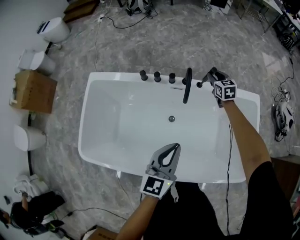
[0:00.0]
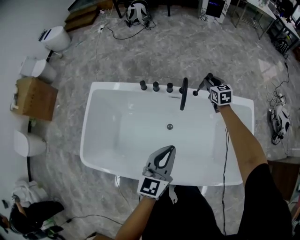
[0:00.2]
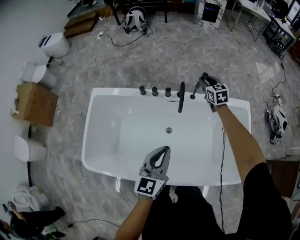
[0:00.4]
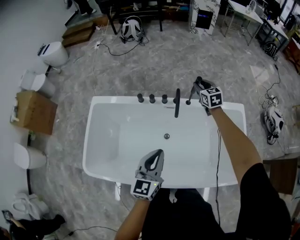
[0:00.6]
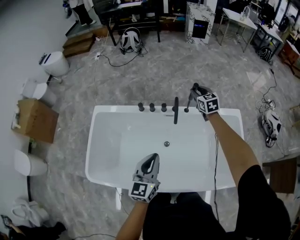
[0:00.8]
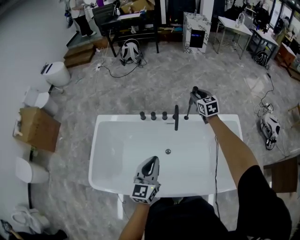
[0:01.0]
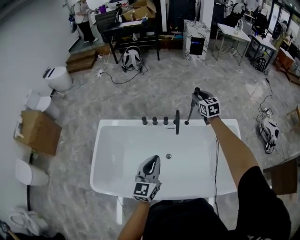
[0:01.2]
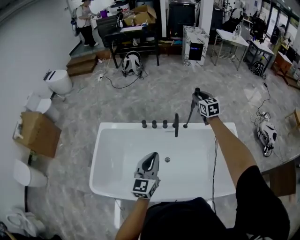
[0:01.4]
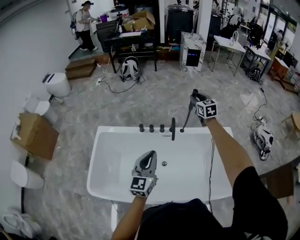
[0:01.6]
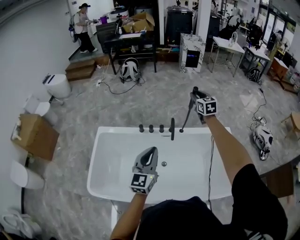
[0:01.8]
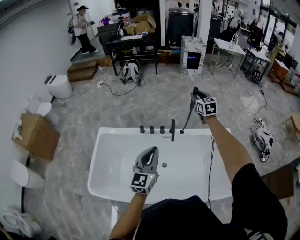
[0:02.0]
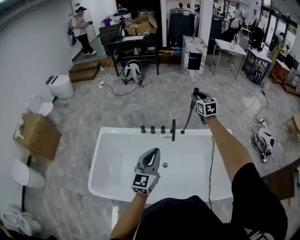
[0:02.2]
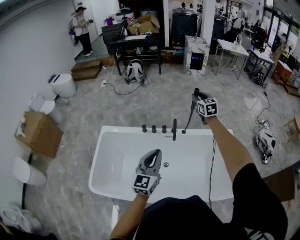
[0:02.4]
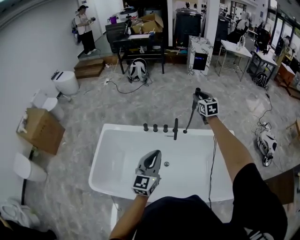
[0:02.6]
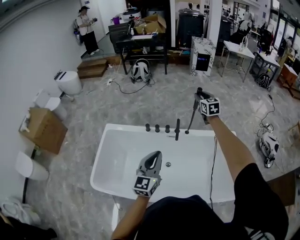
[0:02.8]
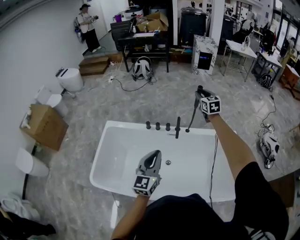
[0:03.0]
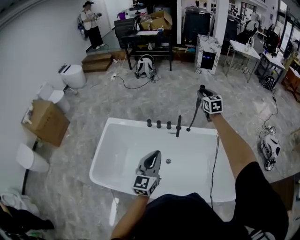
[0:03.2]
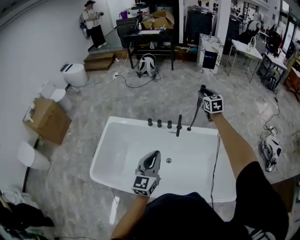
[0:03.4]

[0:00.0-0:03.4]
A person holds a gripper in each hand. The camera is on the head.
0:00.0 to 0:01.6: The right gripper travels upward by roughly 35 cm; the left gripper moves upward and to the left, about 20 cm.
0:01.6 to 0:03.4: The left gripper travels backward by some 5 cm.

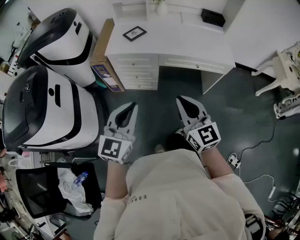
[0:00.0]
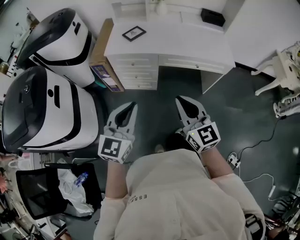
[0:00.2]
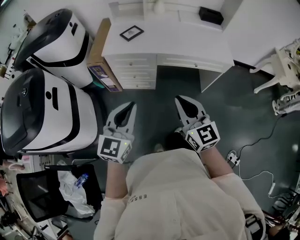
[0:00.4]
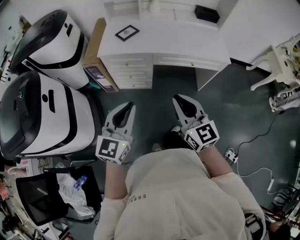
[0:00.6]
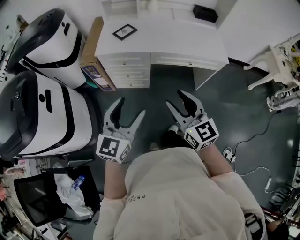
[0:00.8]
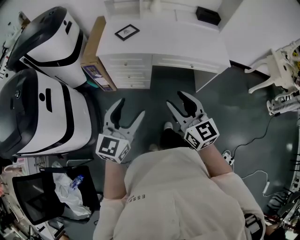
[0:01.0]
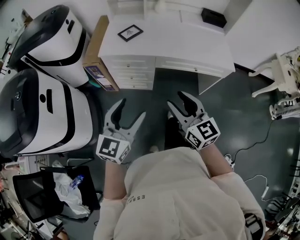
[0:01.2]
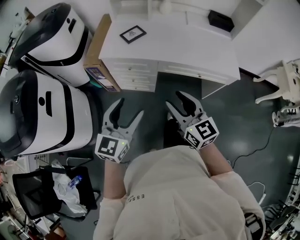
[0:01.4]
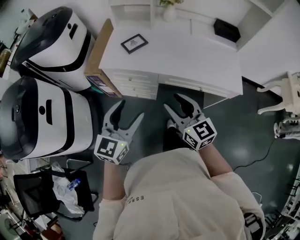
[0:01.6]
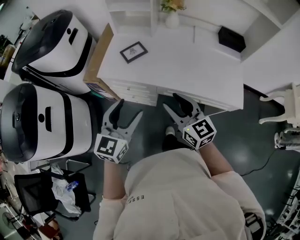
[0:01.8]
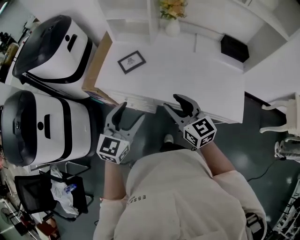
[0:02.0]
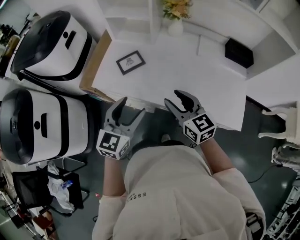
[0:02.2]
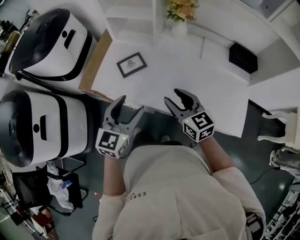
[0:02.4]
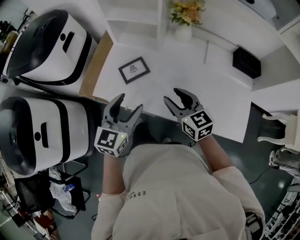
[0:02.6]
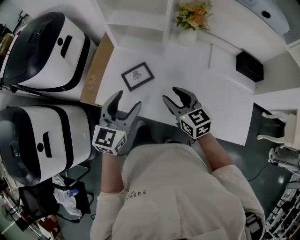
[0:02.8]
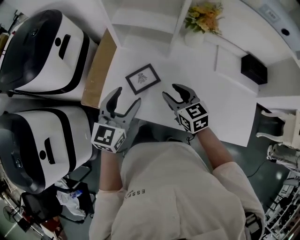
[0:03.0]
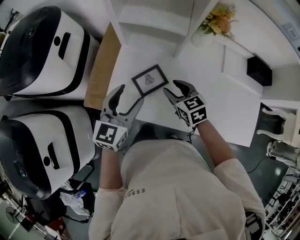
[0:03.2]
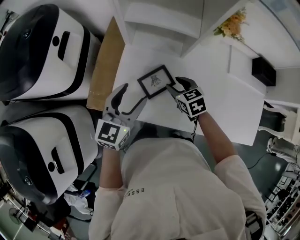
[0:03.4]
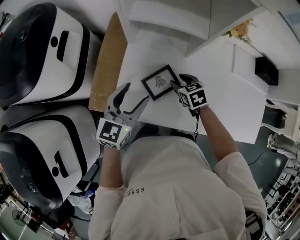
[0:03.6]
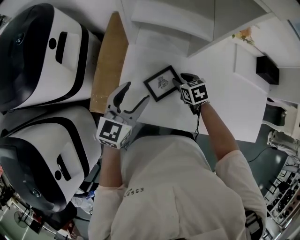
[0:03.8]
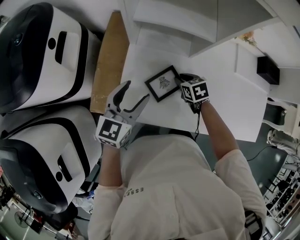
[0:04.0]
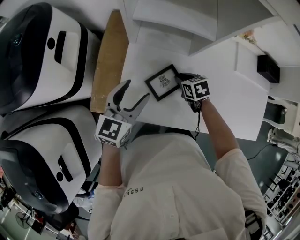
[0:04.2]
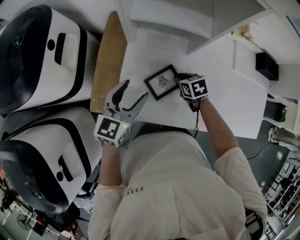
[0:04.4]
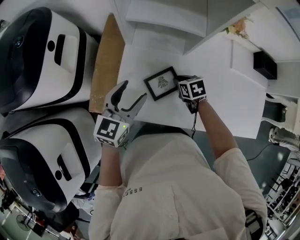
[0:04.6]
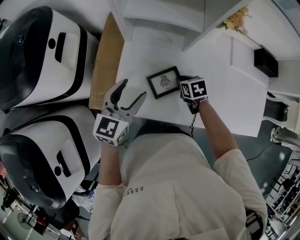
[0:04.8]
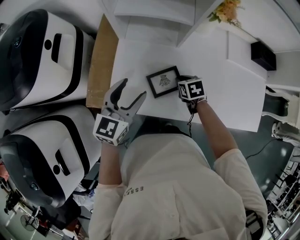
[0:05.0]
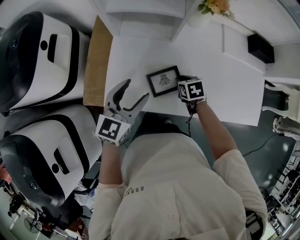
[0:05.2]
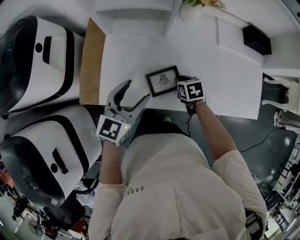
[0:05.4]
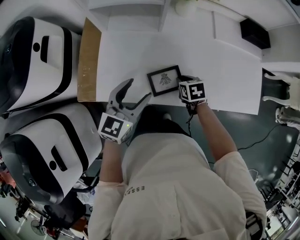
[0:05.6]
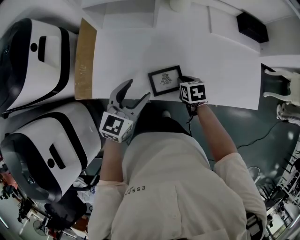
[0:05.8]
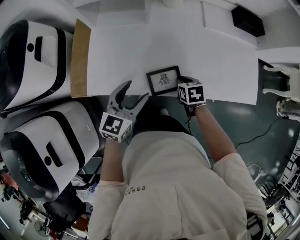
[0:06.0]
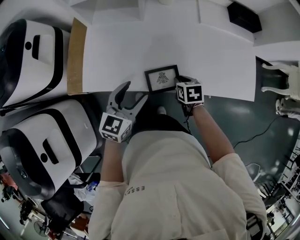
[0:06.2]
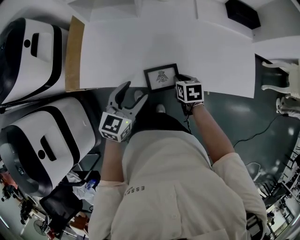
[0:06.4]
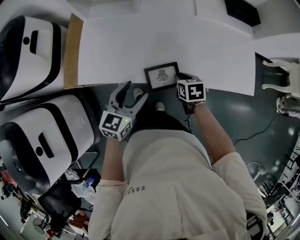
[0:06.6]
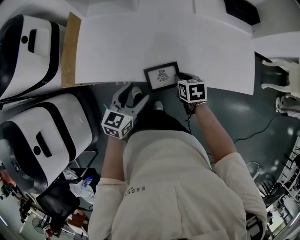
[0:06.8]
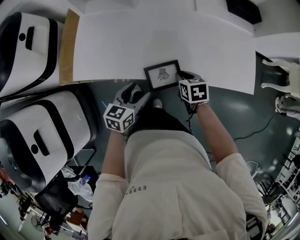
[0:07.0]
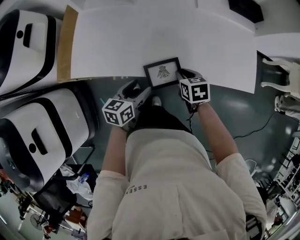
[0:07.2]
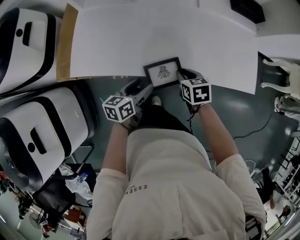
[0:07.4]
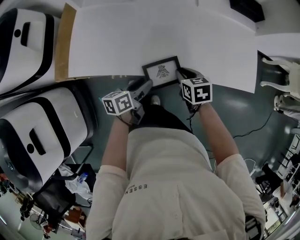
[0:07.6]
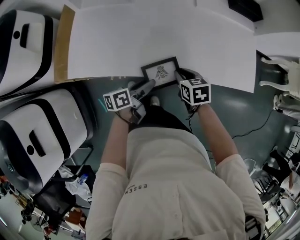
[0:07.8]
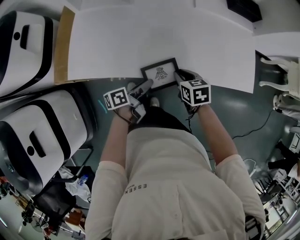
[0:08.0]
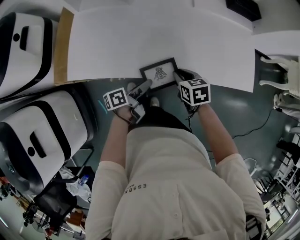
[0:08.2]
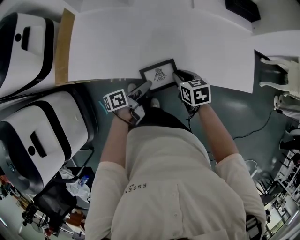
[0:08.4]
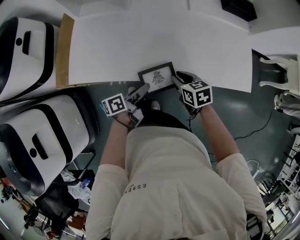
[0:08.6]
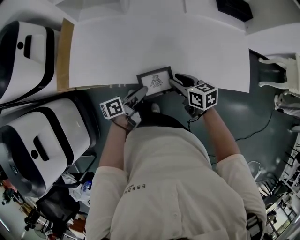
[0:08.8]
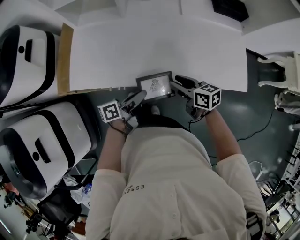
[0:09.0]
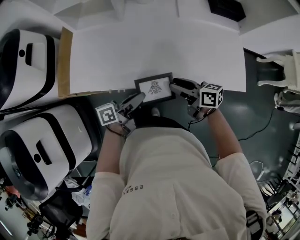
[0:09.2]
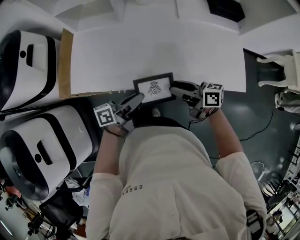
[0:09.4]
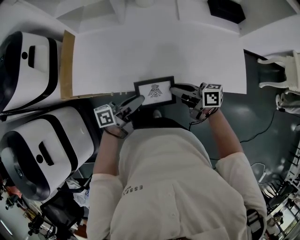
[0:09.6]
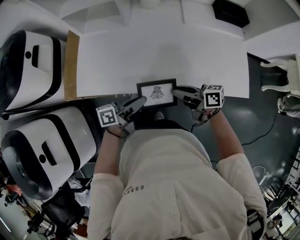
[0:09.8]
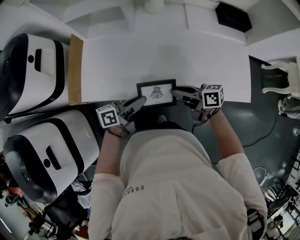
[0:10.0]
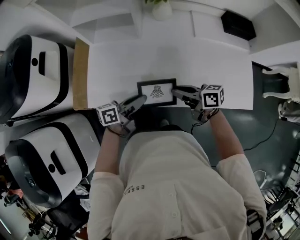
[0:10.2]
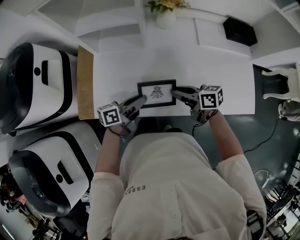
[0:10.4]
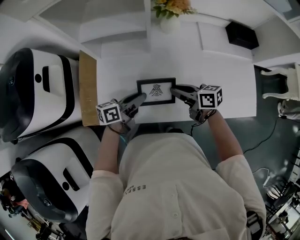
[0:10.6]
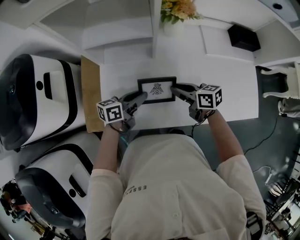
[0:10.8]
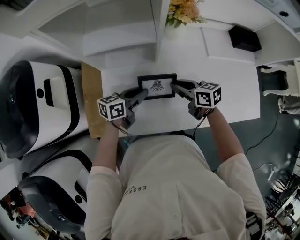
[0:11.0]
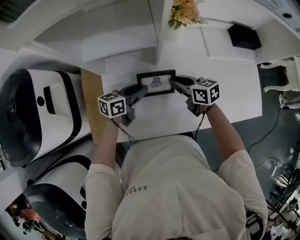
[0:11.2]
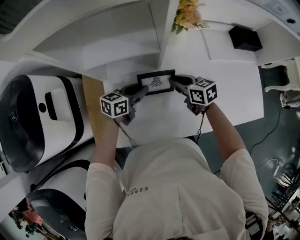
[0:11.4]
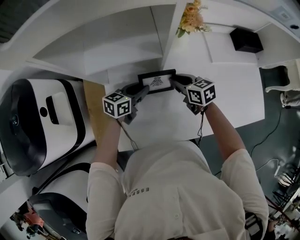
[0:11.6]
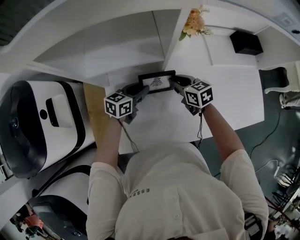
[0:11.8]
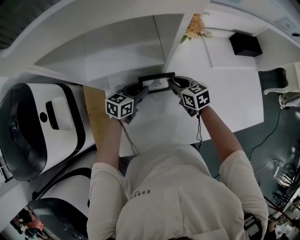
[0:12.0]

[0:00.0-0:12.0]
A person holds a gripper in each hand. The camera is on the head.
0:00.0 to 0:01.6: Both grippers move forward, some 20 cm. The right gripper opens up. Meanwhile the left gripper opens.
0:01.6 to 0:03.0: The grippers both shift forward by some 40 cm. The right gripper rotates some 20 degrees.
0:03.0 to 0:04.4: The left gripper travels forward, to the left and downward by roughly 15 cm; the right gripper travels downward and forward by approximately 20 cm, rotates some 30 degrees, and closes up.
0:04.4 to 0:06.0: The left gripper is displaced to the right and backward by approximately 20 cm; the right gripper shifts roughly 25 cm backward and to the right.
0:06.0 to 0:07.6: The right gripper is displaced to the right by roughly 5 cm. Meanwhile the left gripper goes some 15 cm downward and to the right, and twists roughly 50 degrees counterclockwise, seen from behind.
0:07.6 to 0:09.0: Both grippers travel together upward, some 5 cm. The right gripper changes its angle by about 30 degrees, and opens its fingers, while the left gripper turns by approximately 20 degrees, and closes.
0:09.0 to 0:10.4: The two grippers go roughly 15 cm forward, to the left and upward.
0:10.4 to 0:12.0: The right gripper moves forward and to the left, roughly 20 cm, and swivels roughly 40 degrees, while the left gripper shifts about 20 cm forward, and changes its angle by roughly 40 degrees.

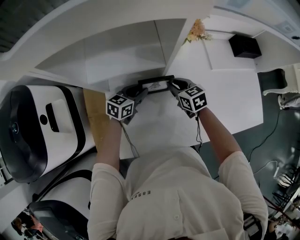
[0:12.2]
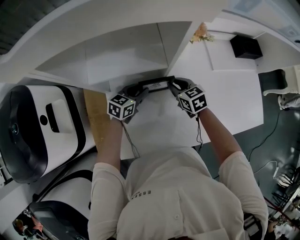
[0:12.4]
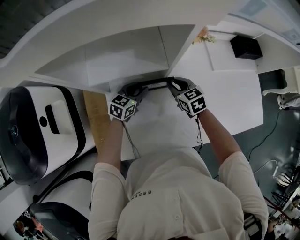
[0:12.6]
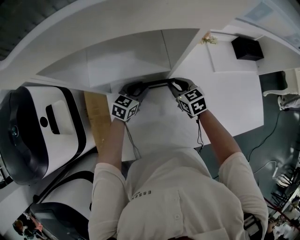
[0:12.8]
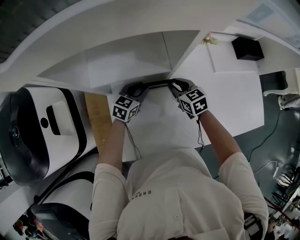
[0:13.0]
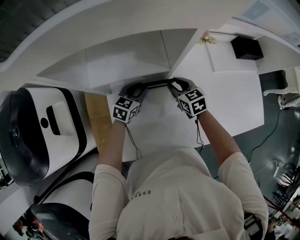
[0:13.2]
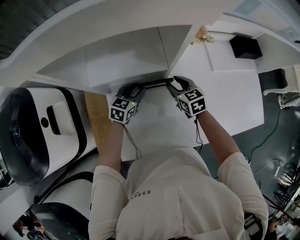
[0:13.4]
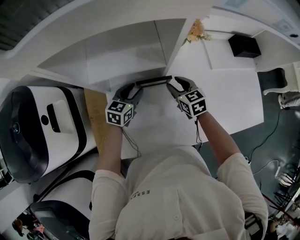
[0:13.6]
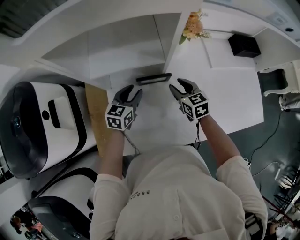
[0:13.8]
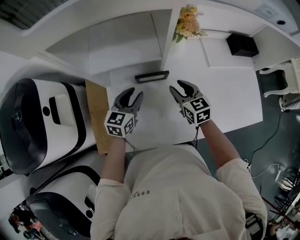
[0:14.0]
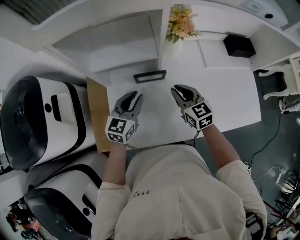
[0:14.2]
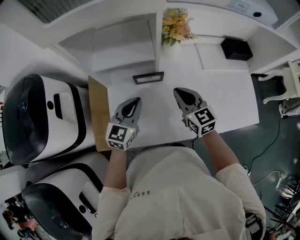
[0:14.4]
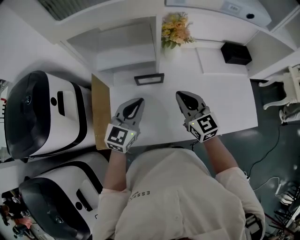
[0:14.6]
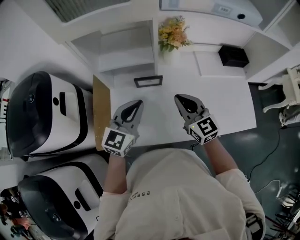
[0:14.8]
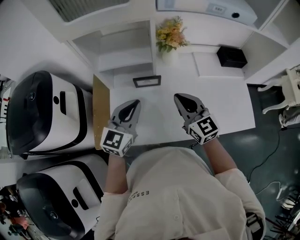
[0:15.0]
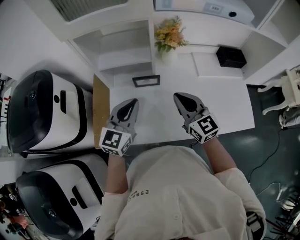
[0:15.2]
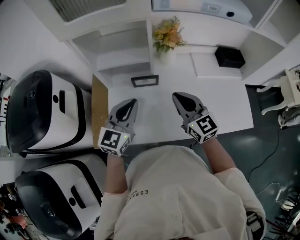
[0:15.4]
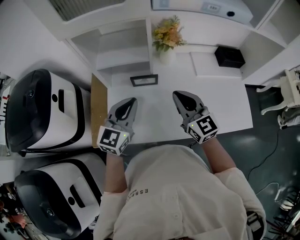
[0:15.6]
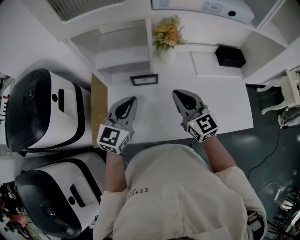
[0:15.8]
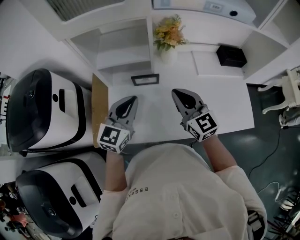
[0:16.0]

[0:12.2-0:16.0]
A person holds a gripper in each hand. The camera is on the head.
0:12.2 to 0:13.4: The grippers move only a little.
0:13.4 to 0:14.8: Both grippers move upward and backward, roughly 25 cm. The left gripper rotates approximately 30 degrees, and closes its fingers, while the right gripper changes its angle by some 30 degrees, and closes up.
0:14.8 to 0:16.0: The grippers move only a little.

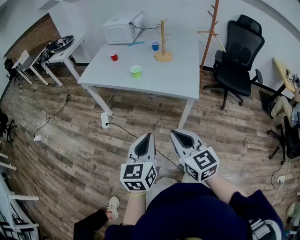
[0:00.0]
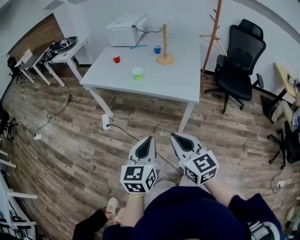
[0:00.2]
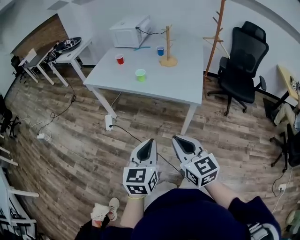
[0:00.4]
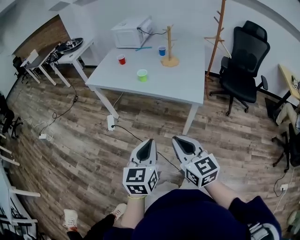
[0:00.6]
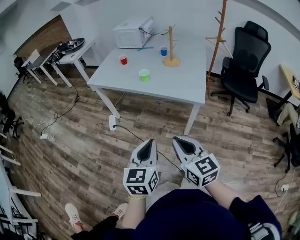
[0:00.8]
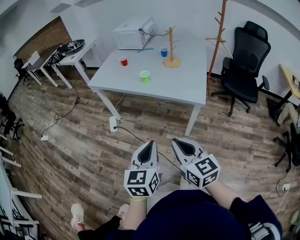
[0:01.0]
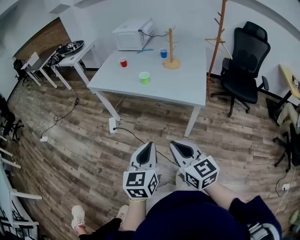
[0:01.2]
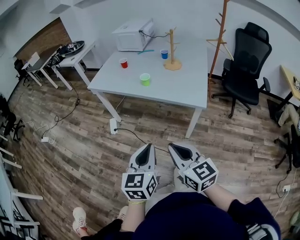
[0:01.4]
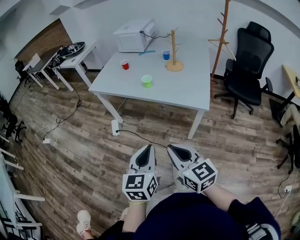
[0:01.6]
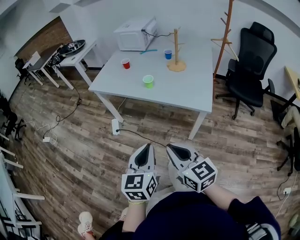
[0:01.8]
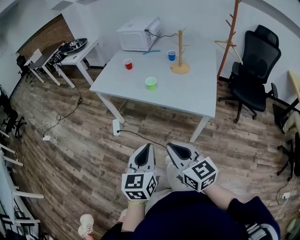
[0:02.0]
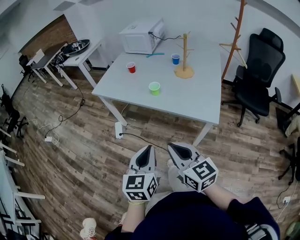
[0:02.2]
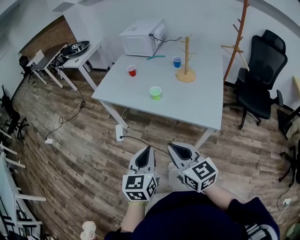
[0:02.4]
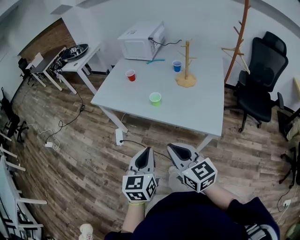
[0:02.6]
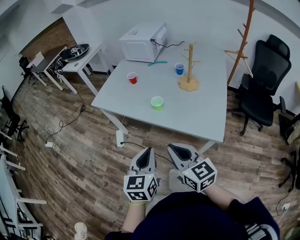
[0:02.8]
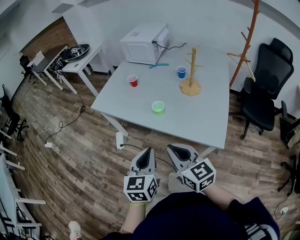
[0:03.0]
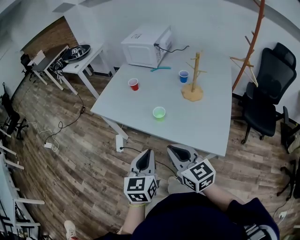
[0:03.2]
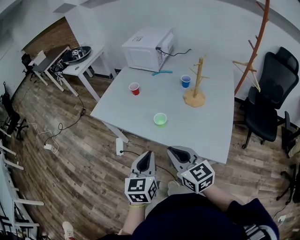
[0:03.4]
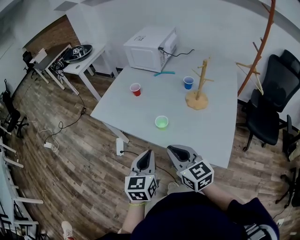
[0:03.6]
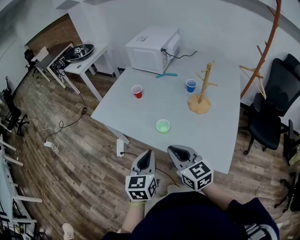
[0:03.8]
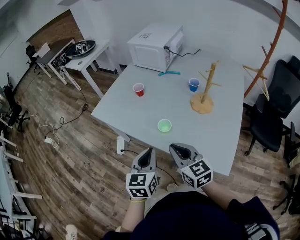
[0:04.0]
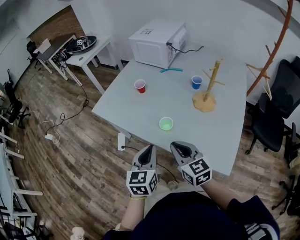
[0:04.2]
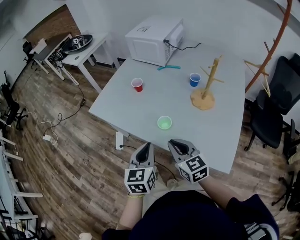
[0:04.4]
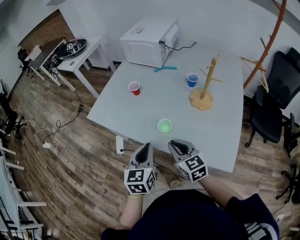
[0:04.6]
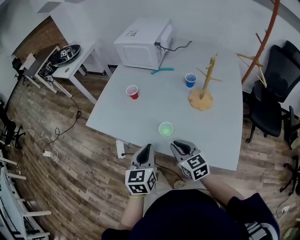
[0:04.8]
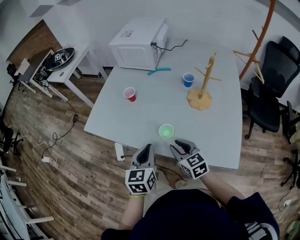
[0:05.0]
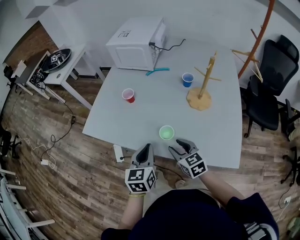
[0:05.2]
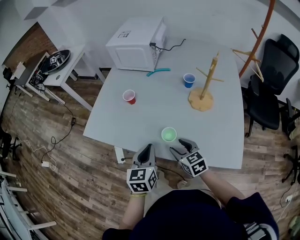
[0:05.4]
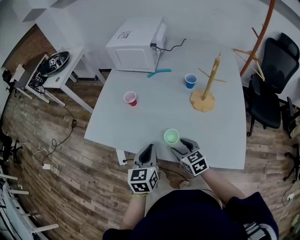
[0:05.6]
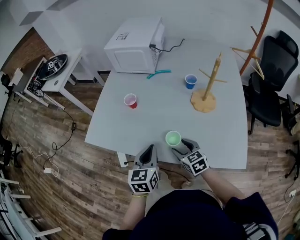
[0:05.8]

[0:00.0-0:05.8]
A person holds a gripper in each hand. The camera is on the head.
0:00.0 to 0:01.4: There are only small adjustments of the grippers.
0:01.4 to 0:02.8: Both grippers travel together forward, roughly 20 cm.
0:02.8 to 0:04.4: The left gripper goes roughly 20 cm forward, while the right gripper shifts some 20 cm forward and downward.
0:04.4 to 0:05.8: The left gripper shifts approximately 10 cm forward; the right gripper travels downward and forward by about 15 cm, and opens its fingers.
